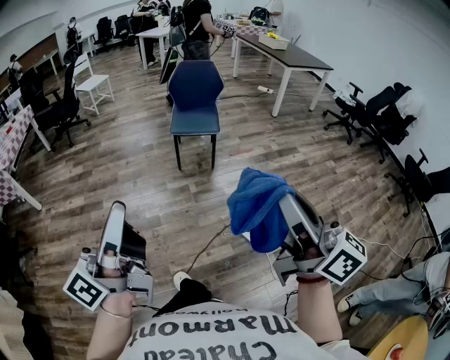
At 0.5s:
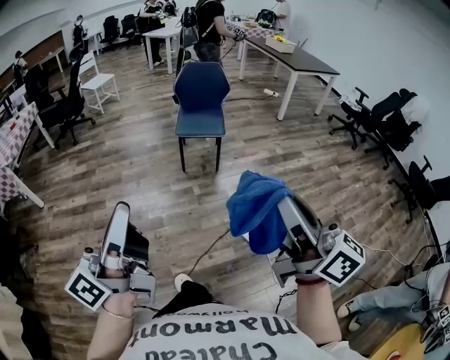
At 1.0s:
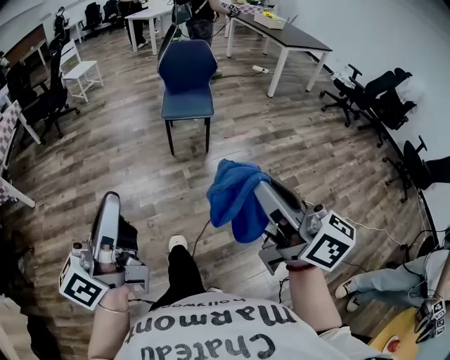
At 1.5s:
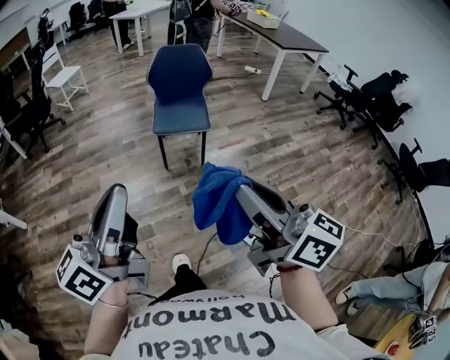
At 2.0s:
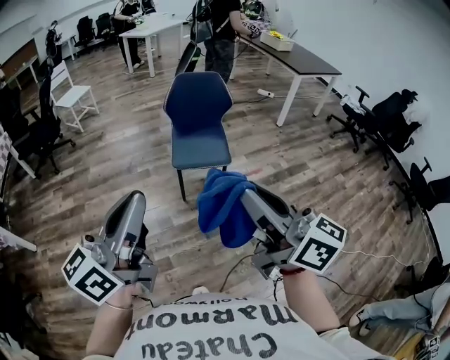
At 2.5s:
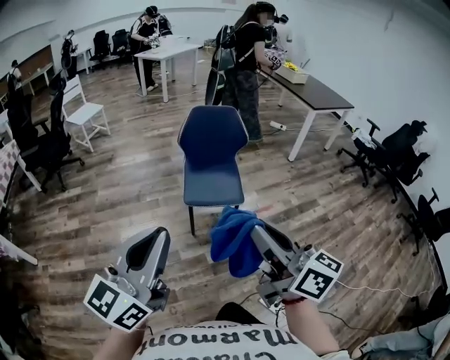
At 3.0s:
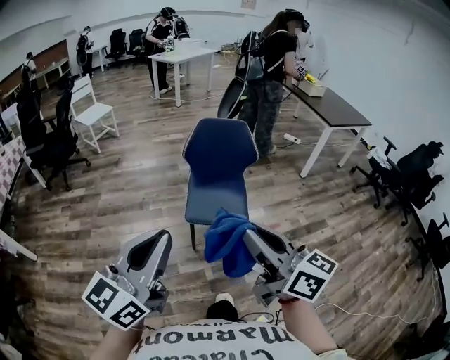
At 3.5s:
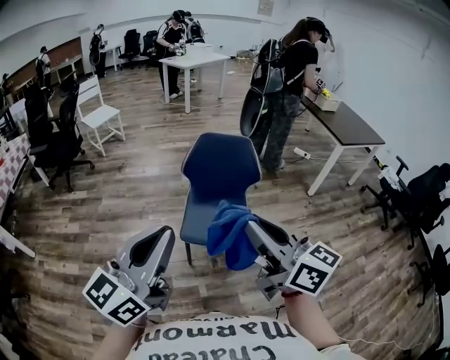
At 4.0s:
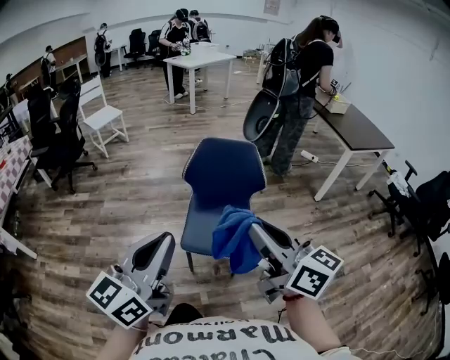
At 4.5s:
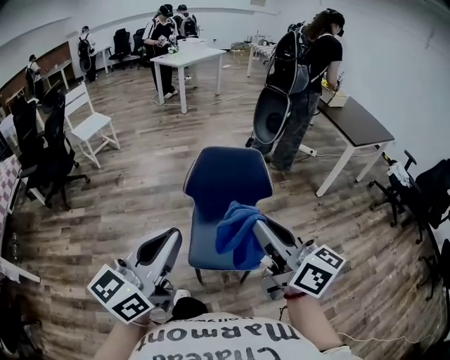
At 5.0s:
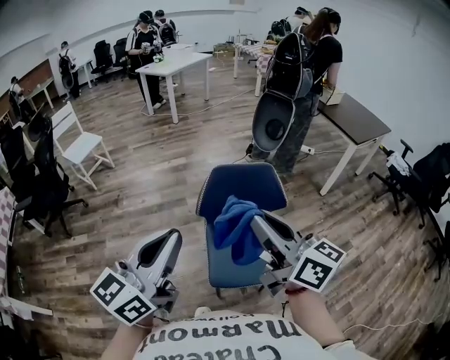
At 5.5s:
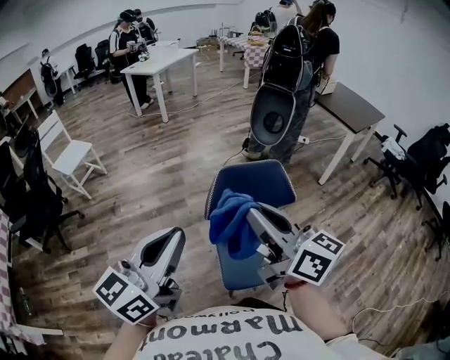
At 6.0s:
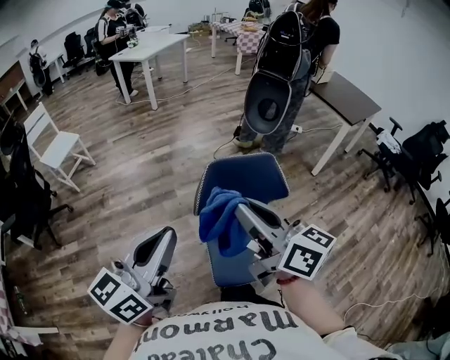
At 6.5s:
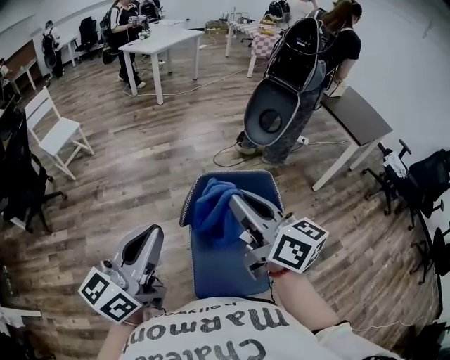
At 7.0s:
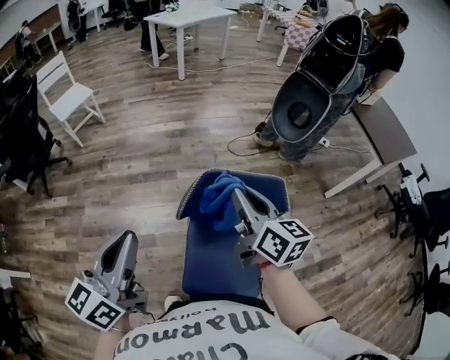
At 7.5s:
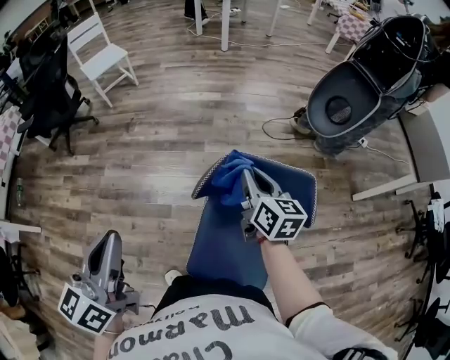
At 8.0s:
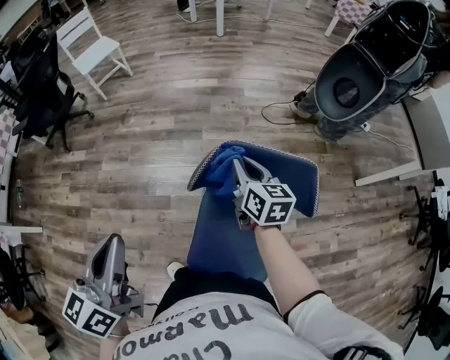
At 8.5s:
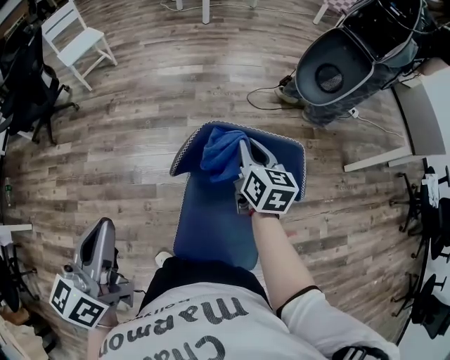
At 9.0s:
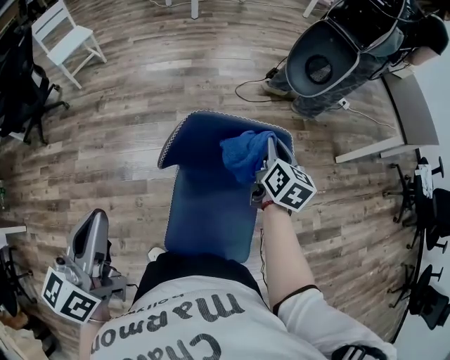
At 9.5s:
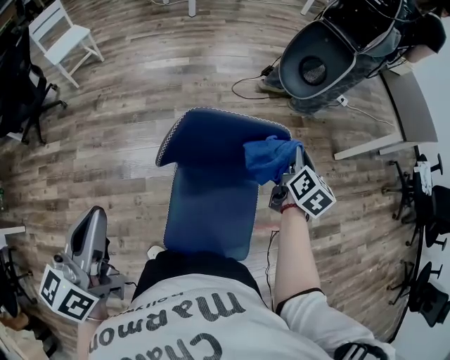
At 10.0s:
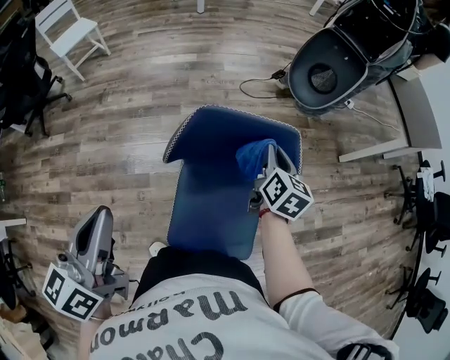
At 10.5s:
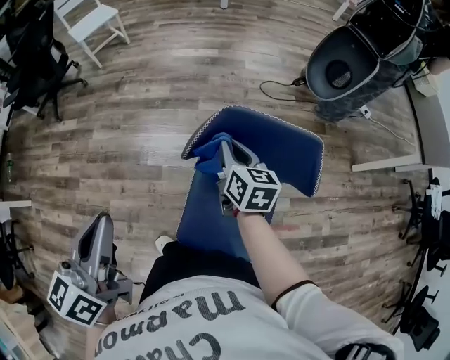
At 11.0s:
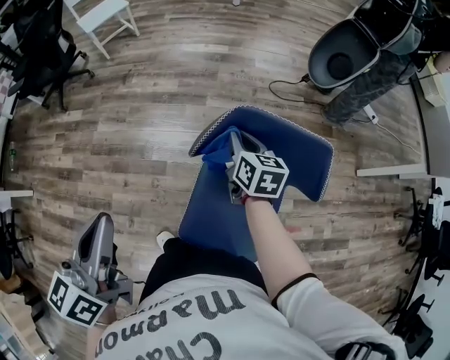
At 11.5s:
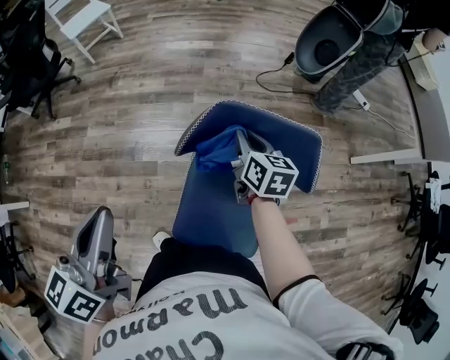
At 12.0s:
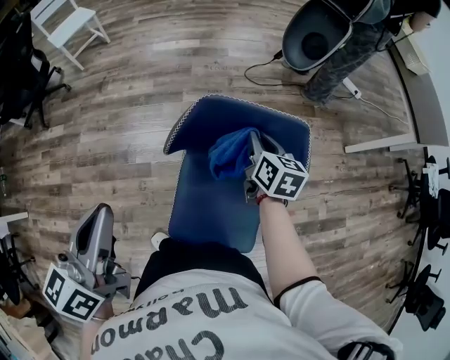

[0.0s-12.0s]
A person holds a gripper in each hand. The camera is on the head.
0.0s to 2.0s: Both grippers move forward, roughly 40 cm. The left gripper turns by about 20 degrees.
2.0s to 4.0s: The two grippers go about 35 cm forward.
4.0s to 6.0s: Both grippers move forward and to the left, about 35 cm. The left gripper swivels approximately 20 degrees.
6.0s to 8.0s: The left gripper heads downward and forward, covering approximately 10 cm, and swivels some 40 degrees. Meanwhile the right gripper moves downward and forward, some 40 cm, and swivels about 30 degrees.
8.0s to 10.0s: The right gripper heads to the right, covering roughly 15 cm, and swivels some 30 degrees.
10.0s to 12.0s: The right gripper moves approximately 20 cm to the left and comes back.

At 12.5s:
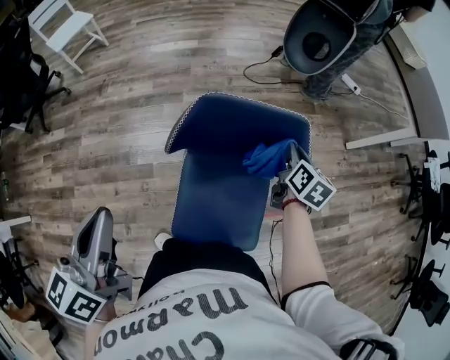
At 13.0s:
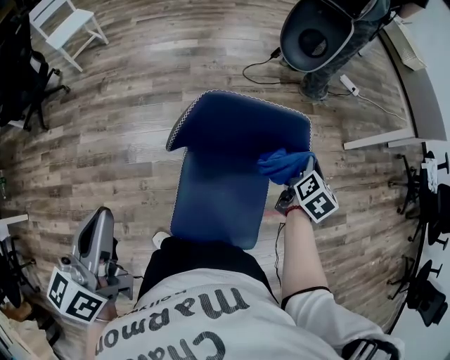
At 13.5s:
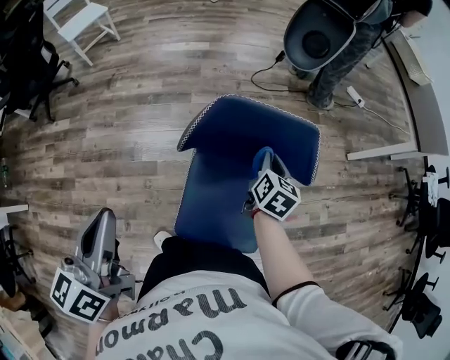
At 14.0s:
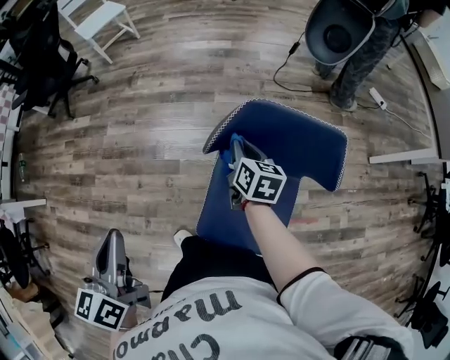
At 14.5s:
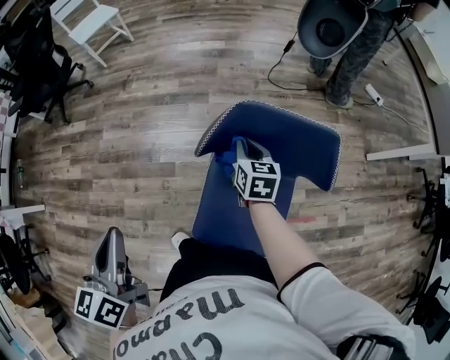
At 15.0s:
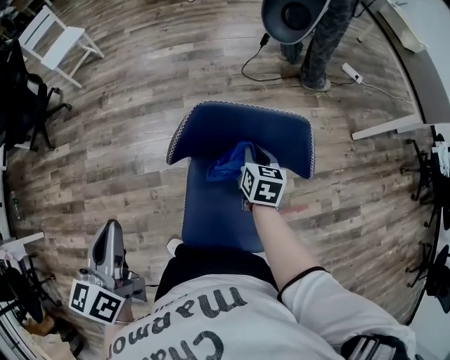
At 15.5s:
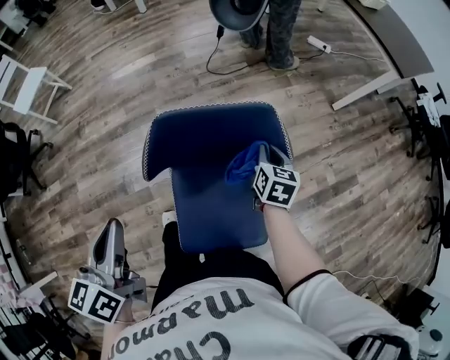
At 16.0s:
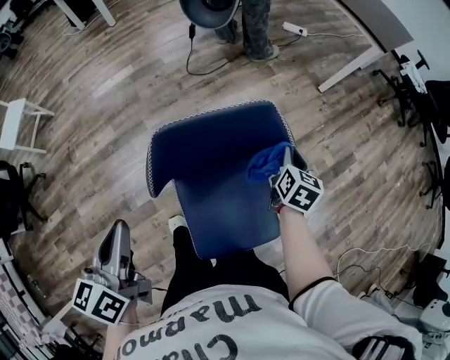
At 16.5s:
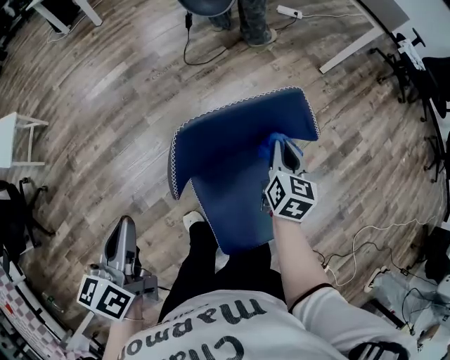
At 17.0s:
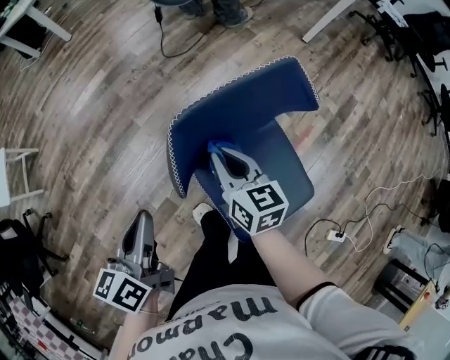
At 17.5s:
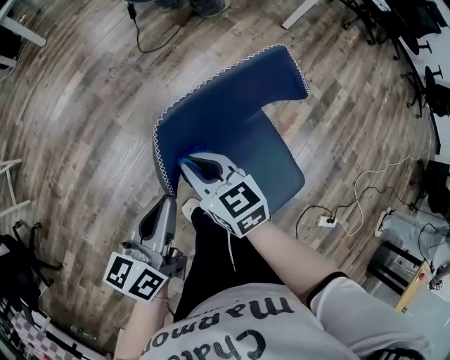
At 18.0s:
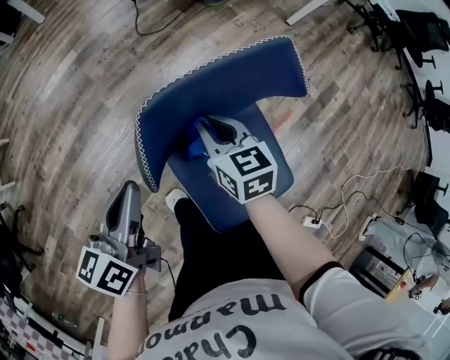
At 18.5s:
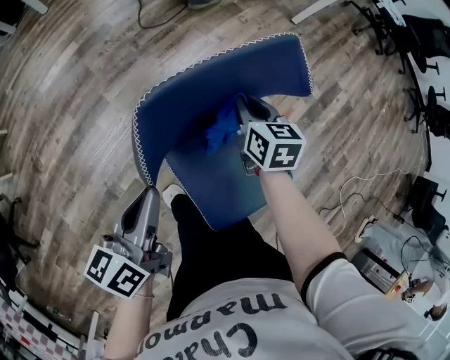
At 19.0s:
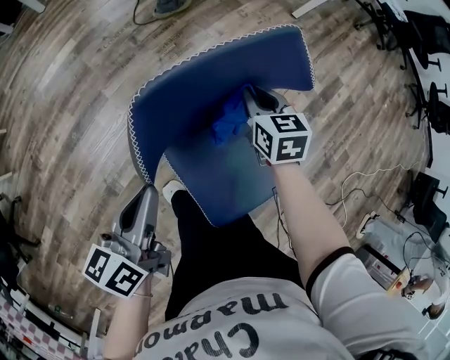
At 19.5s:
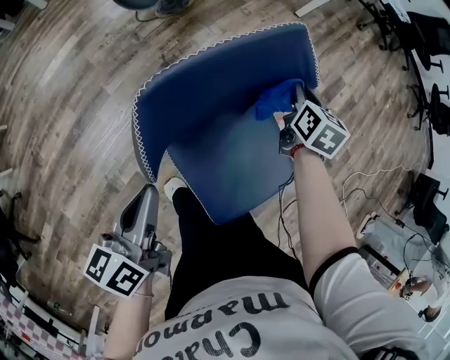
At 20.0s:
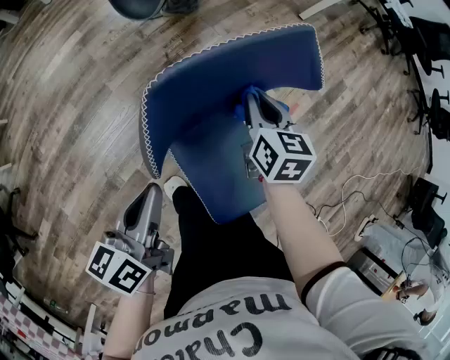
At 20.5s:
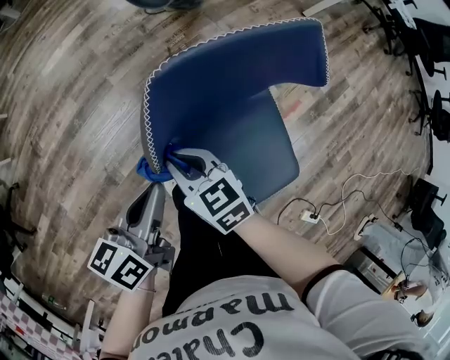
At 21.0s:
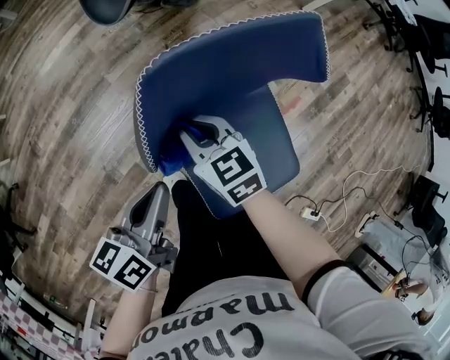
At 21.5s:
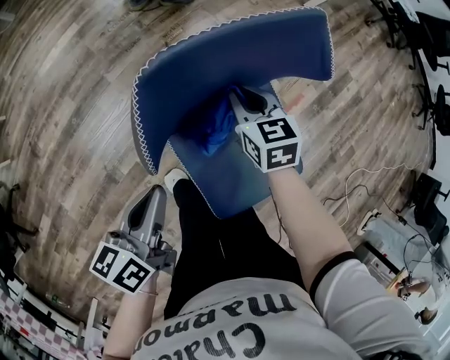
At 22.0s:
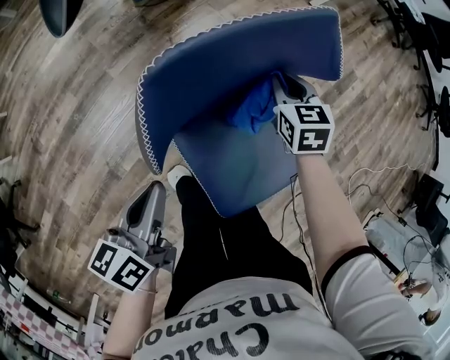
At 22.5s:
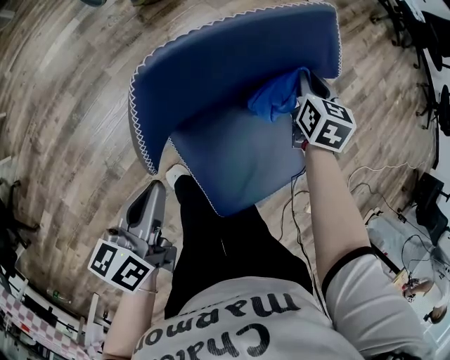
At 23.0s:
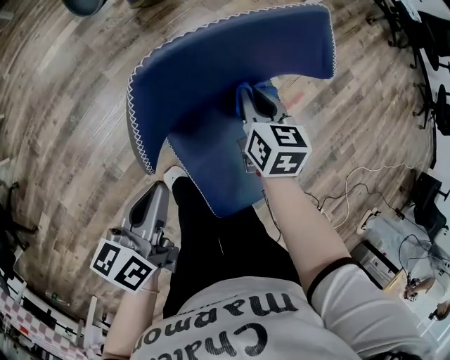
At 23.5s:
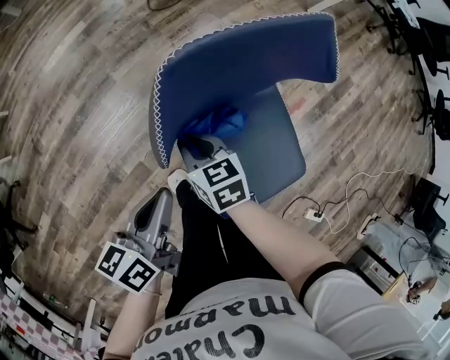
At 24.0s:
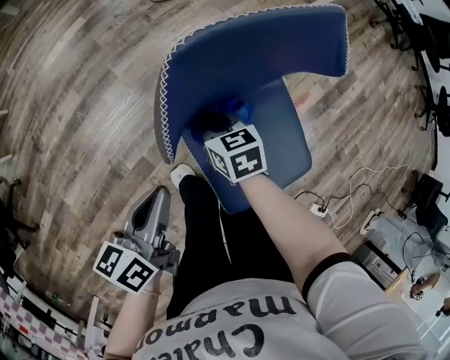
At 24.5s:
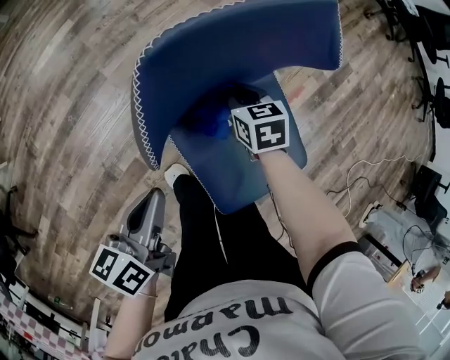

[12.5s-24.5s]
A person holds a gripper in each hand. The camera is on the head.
12.5s to 14.5s: The left gripper ends up about 10 cm from where it was; the right gripper ends up approximately 25 cm from where it was, and rotates about 30 degrees.
14.5s to 16.5s: The right gripper turns by about 50 degrees. The left gripper moves about 25 cm, and turns by about 40 degrees.
16.5s to 18.5s: The right gripper goes about 5 cm downward, and travels to the left and back again, some 20 cm each way, while the left gripper shifts about 15 cm downward and to the right, and changes its angle by roughly 20 degrees.
18.5s to 20.5s: The right gripper changes place by approximately 25 cm, and changes its angle by approximately 30 degrees.
20.5s to 22.5s: The right gripper changes place by approximately 35 cm, and turns by some 50 degrees.
22.5s to 24.5s: The right gripper turns by about 30 degrees.

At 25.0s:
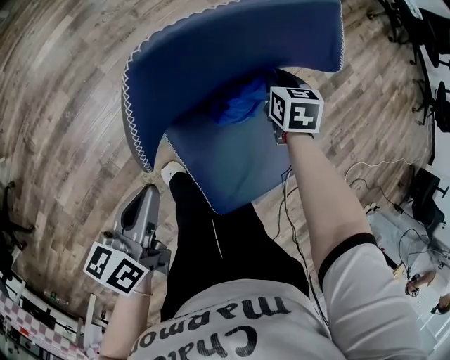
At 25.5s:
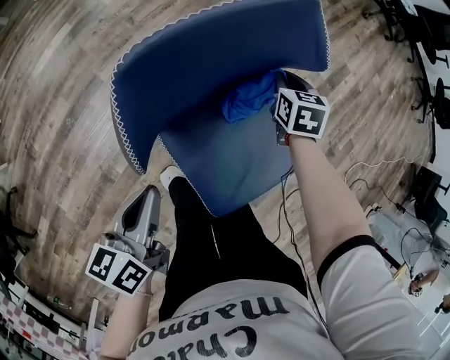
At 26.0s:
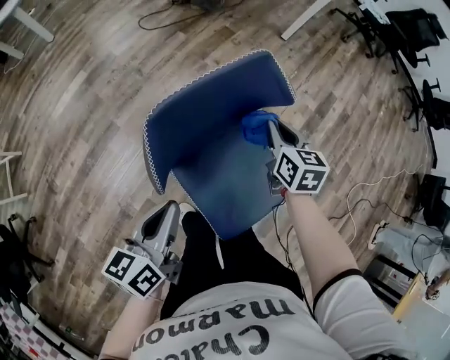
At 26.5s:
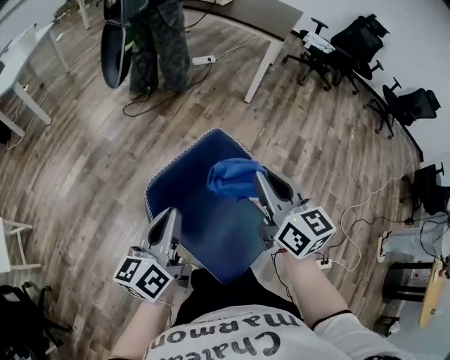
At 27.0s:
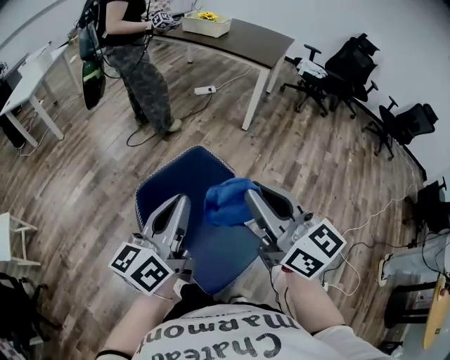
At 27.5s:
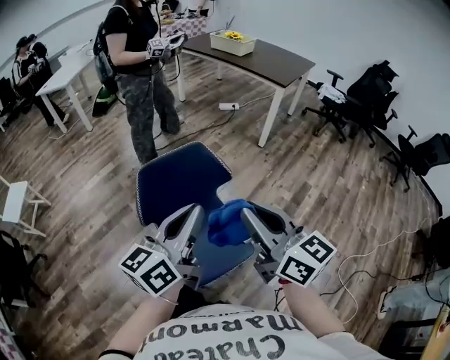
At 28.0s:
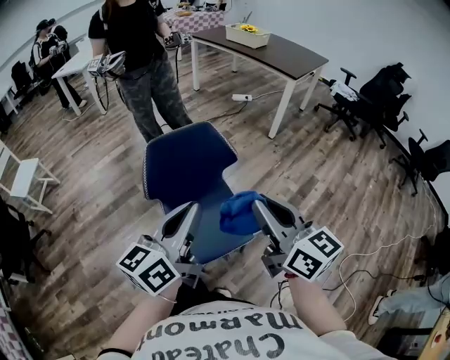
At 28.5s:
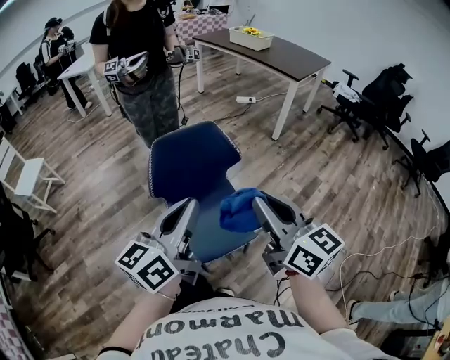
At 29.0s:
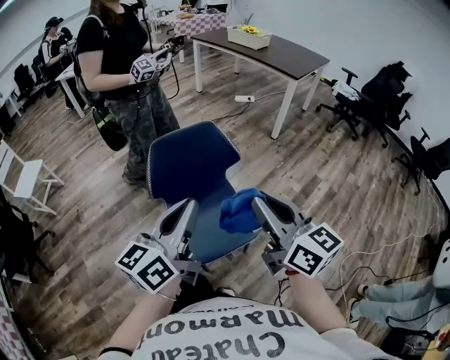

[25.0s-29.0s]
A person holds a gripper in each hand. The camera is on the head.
25.0s to 27.0s: The left gripper is displaced upward and to the right by about 40 cm, and tilts its fingers about 30 degrees upward, while the right gripper is displaced upward by some 50 cm, and angles its fingers upward, by some 50 degrees.
27.0s to 29.0s: Both grippers travel together backward, some 20 cm.
